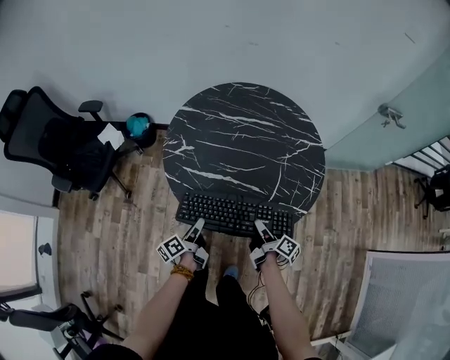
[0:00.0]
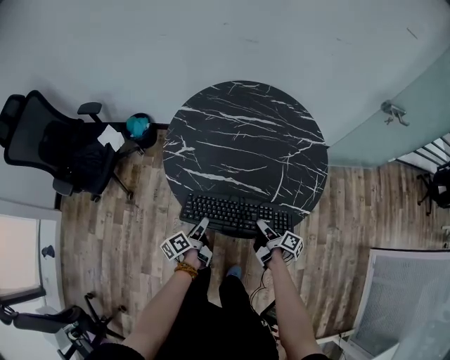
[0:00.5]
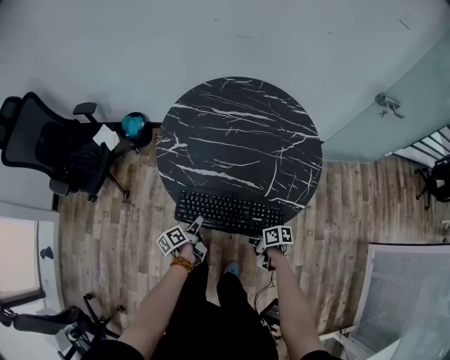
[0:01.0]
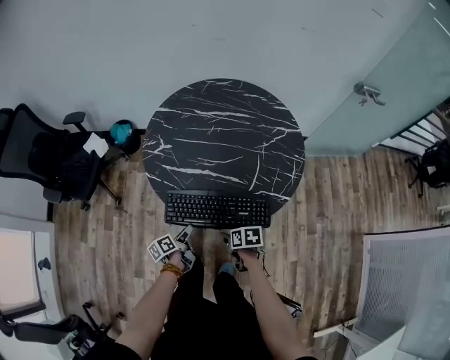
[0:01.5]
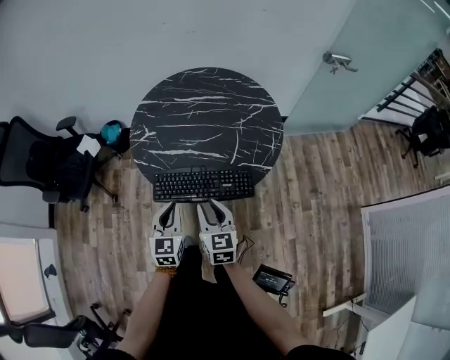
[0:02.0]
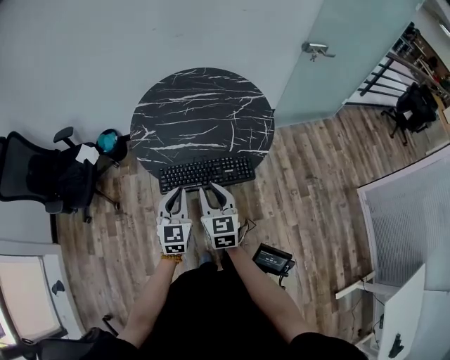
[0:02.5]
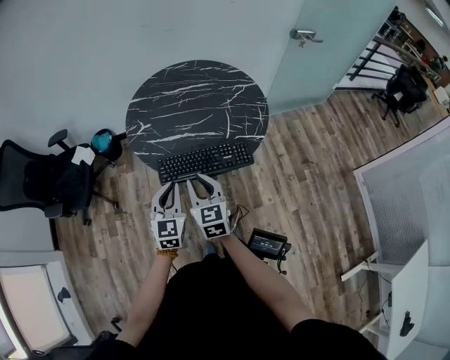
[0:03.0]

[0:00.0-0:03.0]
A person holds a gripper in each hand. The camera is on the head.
0:00.0 to 0:01.5: The right gripper travels backward, to the left and downward by roughly 10 cm, tilts its fingers roughly 40 degrees downward, and opens its fingers. Meanwhile the left gripper moves downward and backward, roughly 10 cm.
0:01.5 to 0:03.0: Both grippers move upward, roughly 25 cm. The left gripper rolls clockwise, seen from behind, by some 80 degrees, and closes, while the right gripper tips its fingers upward by about 40 degrees, and closes.

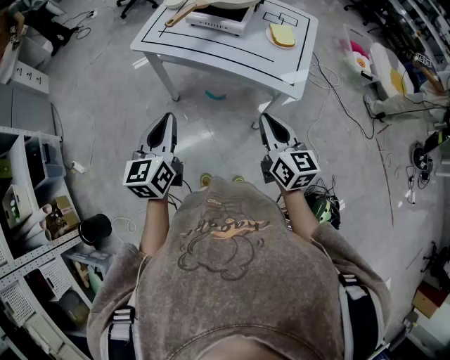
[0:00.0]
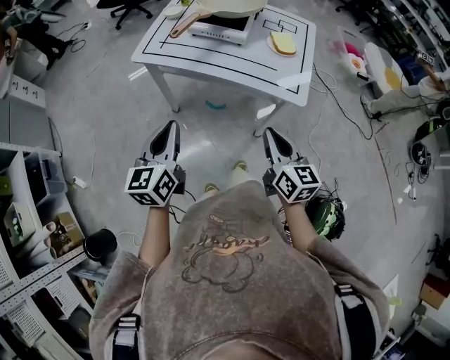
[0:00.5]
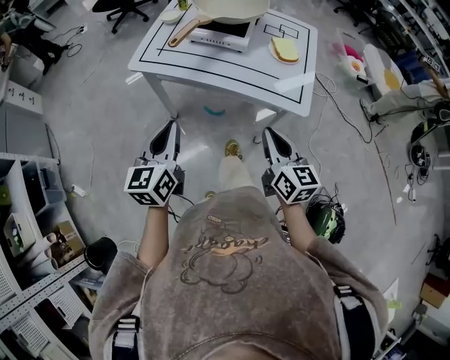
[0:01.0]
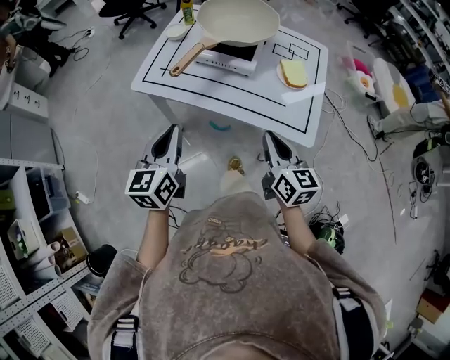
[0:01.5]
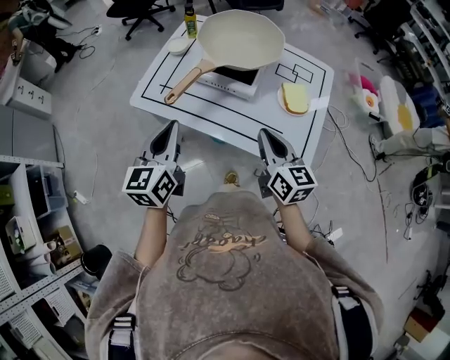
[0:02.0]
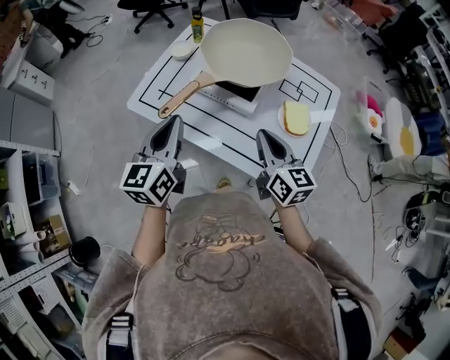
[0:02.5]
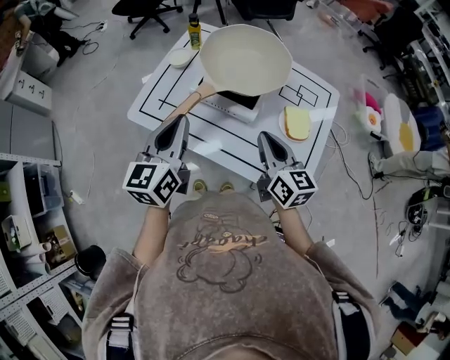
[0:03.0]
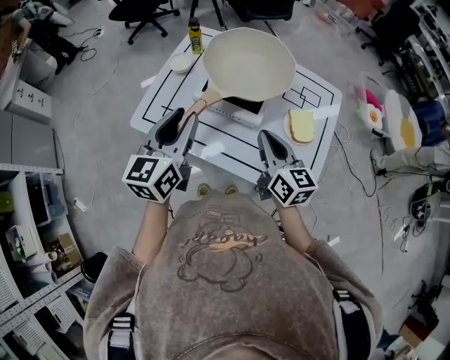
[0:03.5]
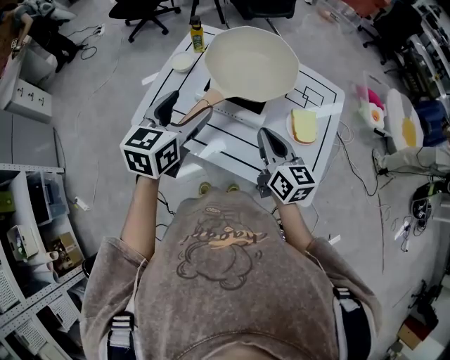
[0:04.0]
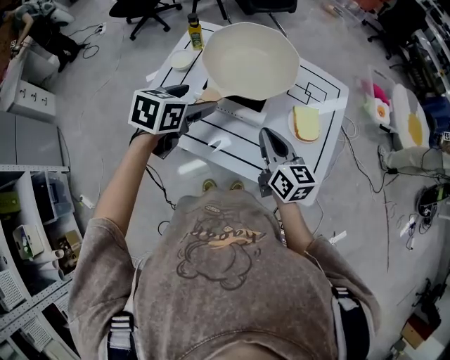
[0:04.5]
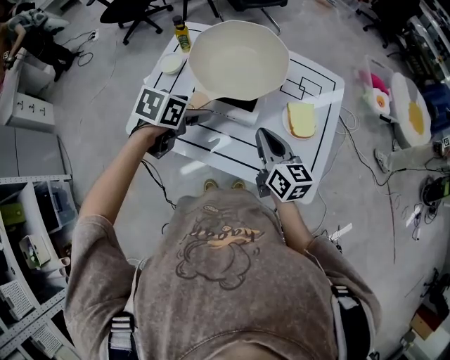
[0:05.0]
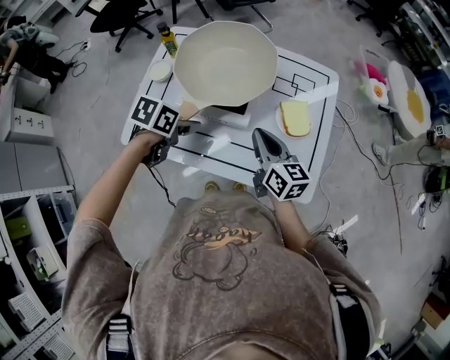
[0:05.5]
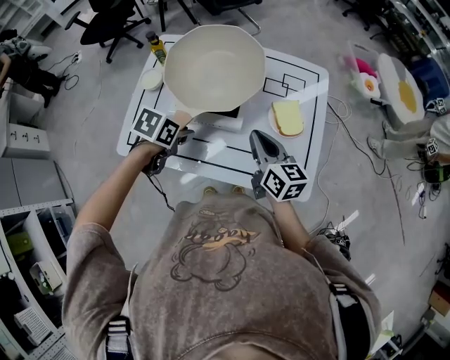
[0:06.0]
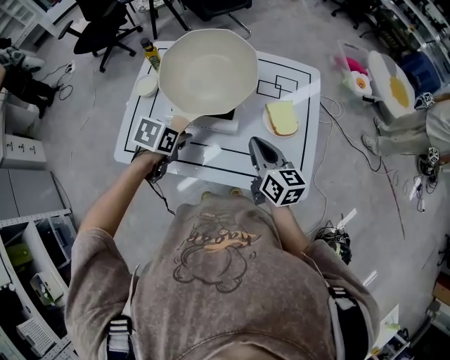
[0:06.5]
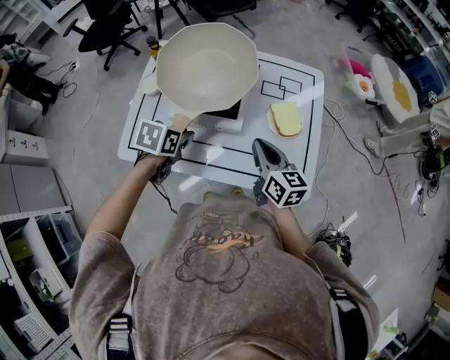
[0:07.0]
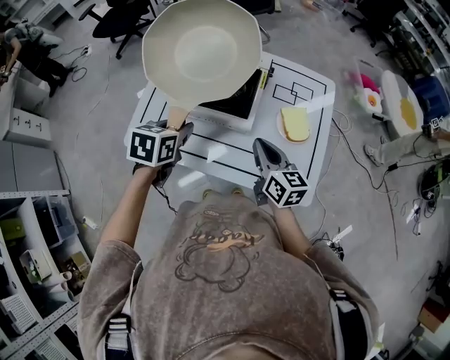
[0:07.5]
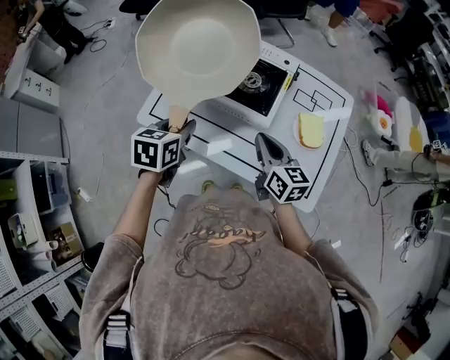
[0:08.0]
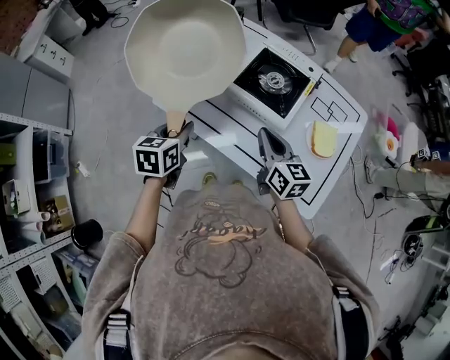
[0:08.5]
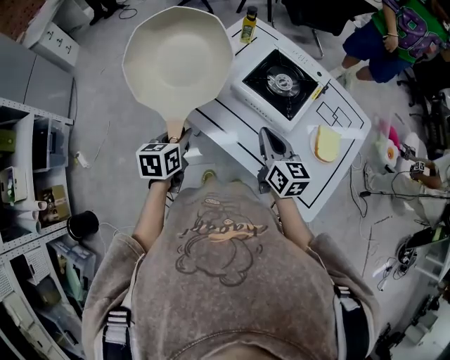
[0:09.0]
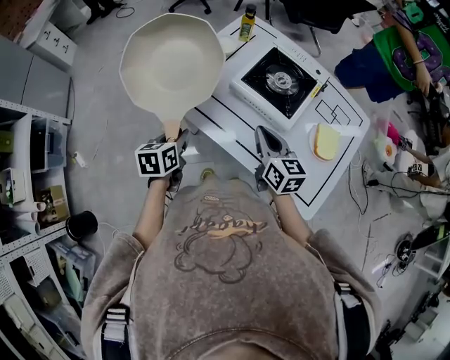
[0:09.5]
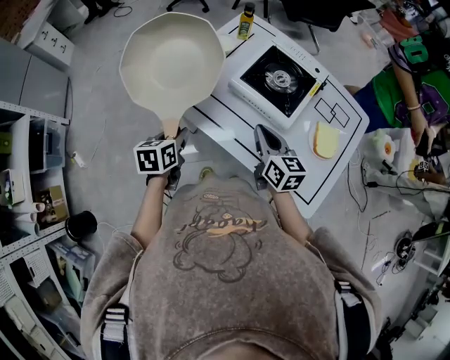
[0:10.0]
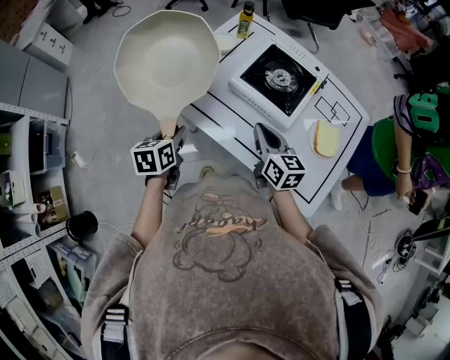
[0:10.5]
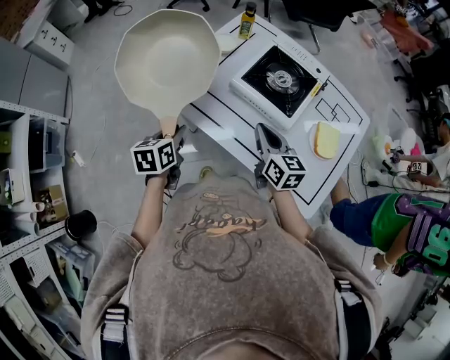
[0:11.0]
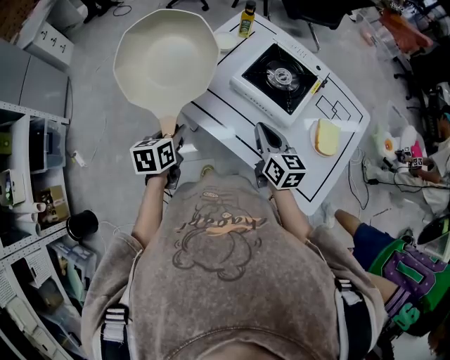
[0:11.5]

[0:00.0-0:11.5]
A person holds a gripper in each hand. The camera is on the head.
0:00.0 to 0:02.0: The two grippers go approximately 25 cm forward.
0:02.0 to 0:04.0: Both grippers move forward, roughly 15 cm. The left gripper opens.
0:04.0 to 0:06.0: The left gripper goes roughly 15 cm downward, points its fingers approximately 40 degrees further downward, and closes up. Meanwhile the right gripper moves about 5 cm.
0:06.0 to 0:07.5: The left gripper is displaced upward by about 5 cm, and swivels roughly 30 degrees.
0:07.5 to 0:09.5: The right gripper shifts some 10 cm to the left, and swivels some 20 degrees; the left gripper moves to the left, backward and downward, some 20 cm, and rotates approximately 40 degrees.
0:09.5 to 0:11.5: There are only small adjustments of the grippers.

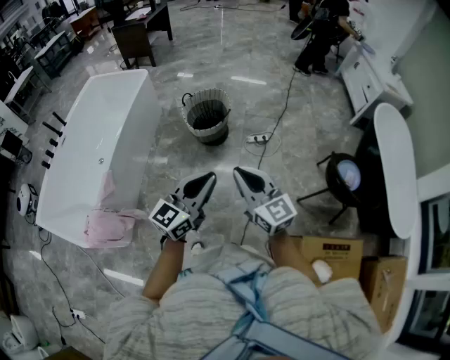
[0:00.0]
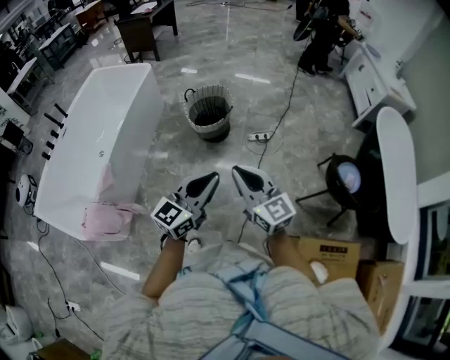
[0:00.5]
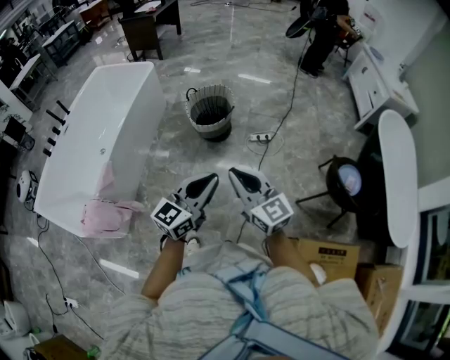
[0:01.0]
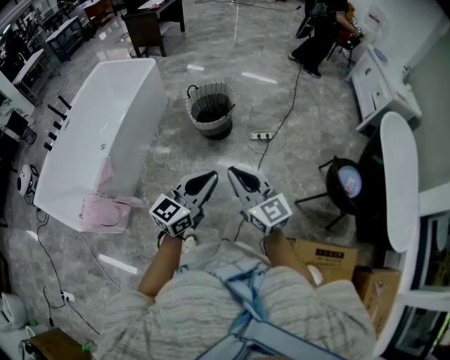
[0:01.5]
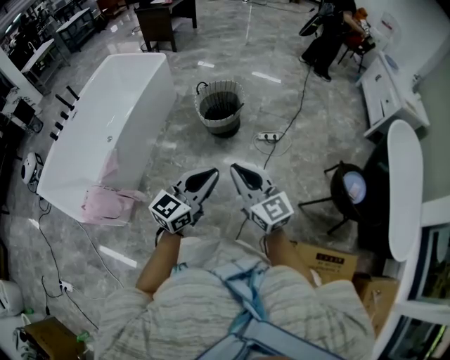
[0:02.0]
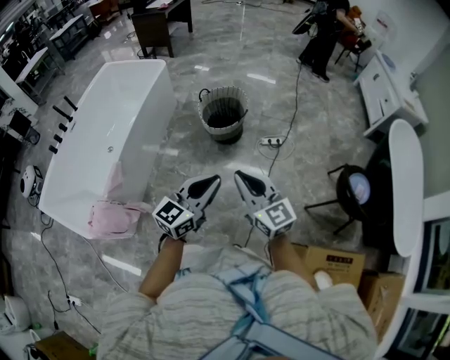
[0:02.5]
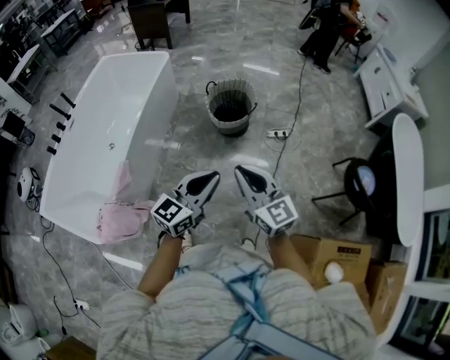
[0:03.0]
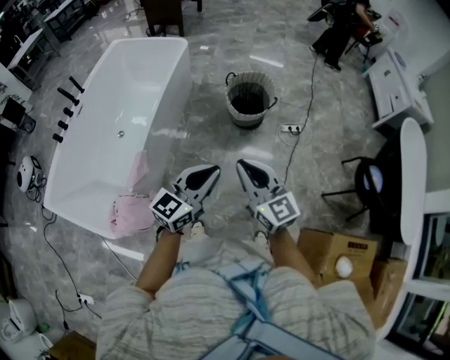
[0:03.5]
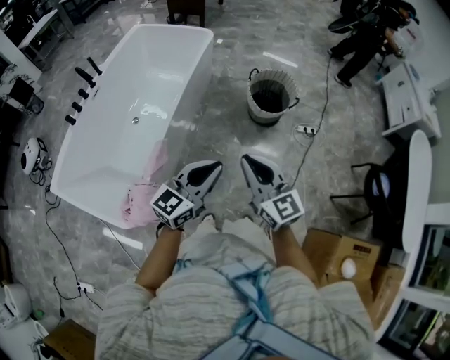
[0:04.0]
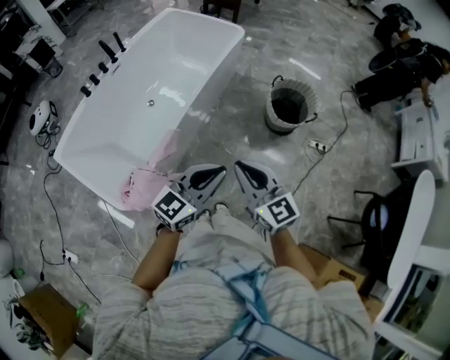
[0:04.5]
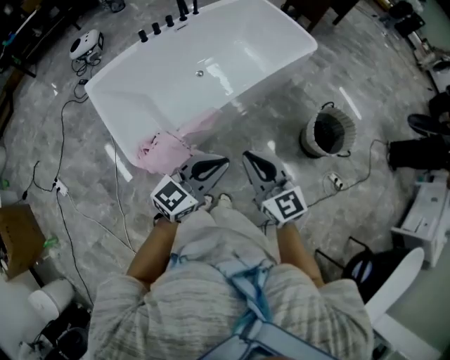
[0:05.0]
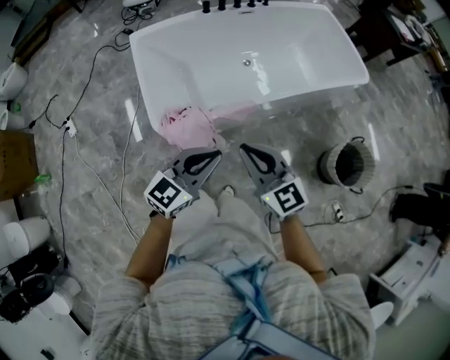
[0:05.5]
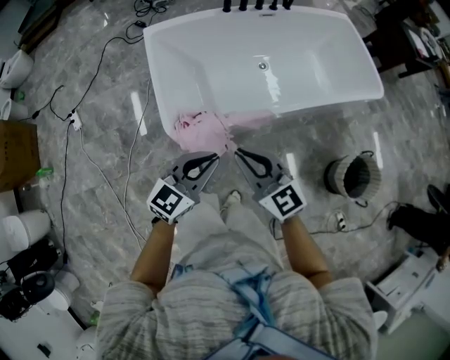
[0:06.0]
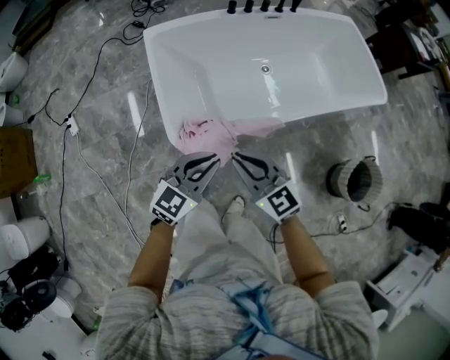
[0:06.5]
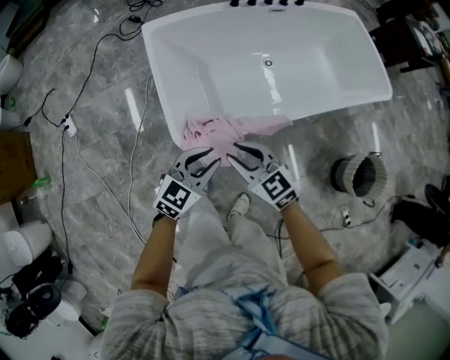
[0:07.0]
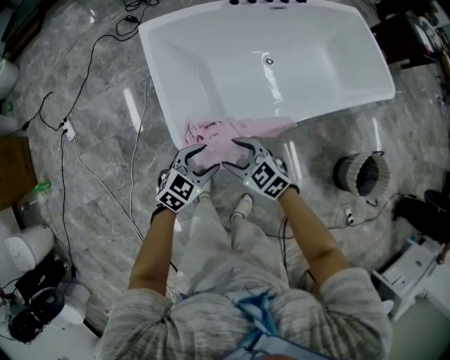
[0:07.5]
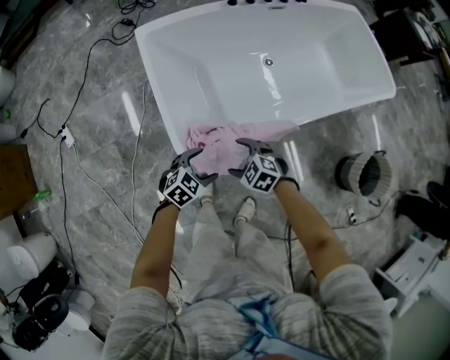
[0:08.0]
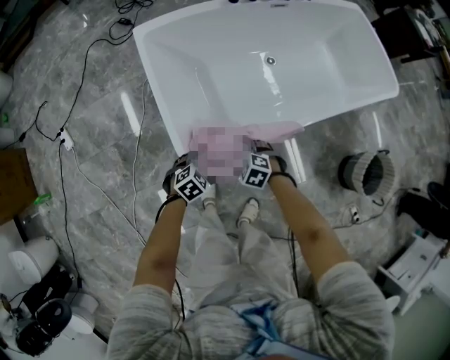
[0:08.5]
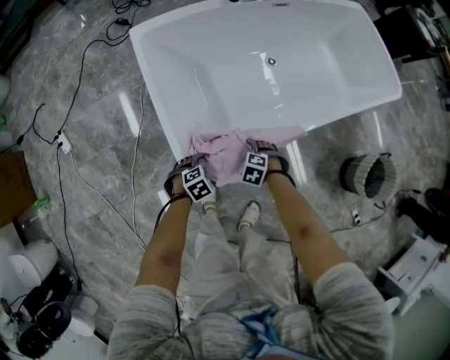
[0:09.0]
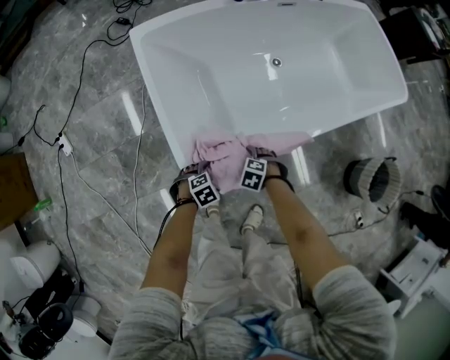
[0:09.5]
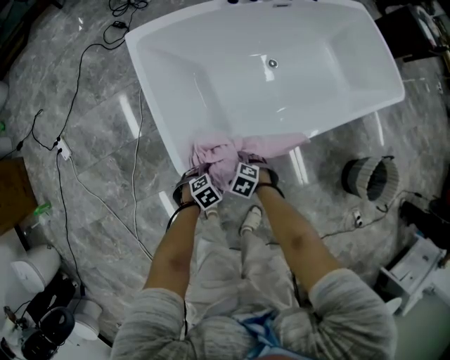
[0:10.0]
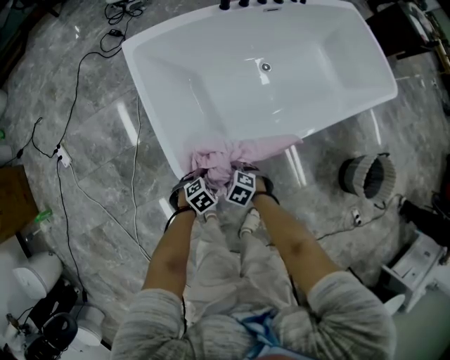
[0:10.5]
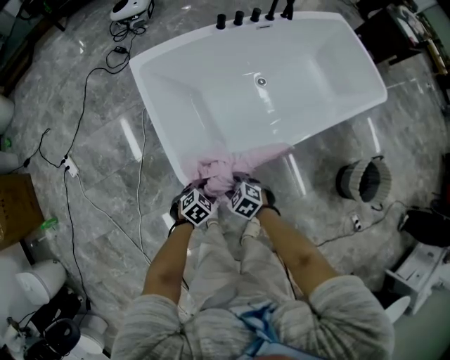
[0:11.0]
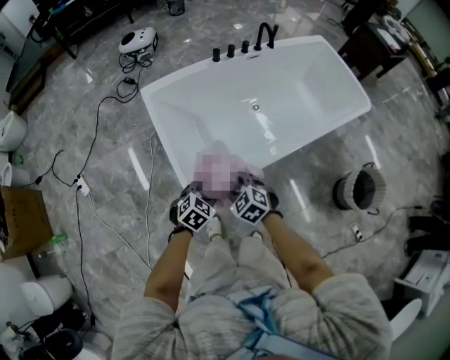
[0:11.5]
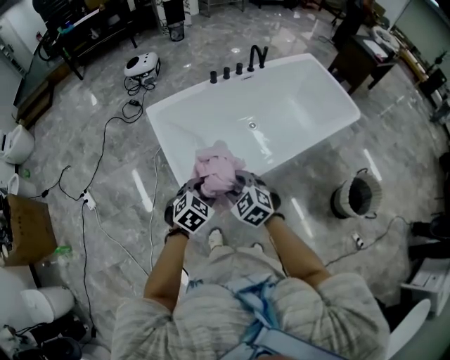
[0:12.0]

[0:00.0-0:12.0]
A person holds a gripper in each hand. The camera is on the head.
0:00.0 to 0:02.0: The grippers make only small movements.
0:02.0 to 0:04.0: The two grippers travel together, to the left, about 40 cm.
0:04.0 to 0:06.0: The left gripper moves roughly 30 cm, and swivels some 60 degrees; the right gripper moves about 35 cm, and changes its angle by about 70 degrees.
0:06.0 to 0:08.0: Both grippers move downward, about 30 cm. The right gripper points its fingers some 40 degrees further downward, and opens, while the left gripper points its fingers roughly 30 degrees further downward, and opens.
0:08.0 to 0:10.0: The two grippers go roughly 15 cm downward. The right gripper swivels roughly 20 degrees, while the left gripper changes its angle by approximately 20 degrees.
0:10.0 to 0:12.0: The two grippers go approximately 40 cm upward. The left gripper changes its angle by some 30 degrees, and closes its fingers. The right gripper angles its fingers upward, by some 30 degrees, and closes up.
